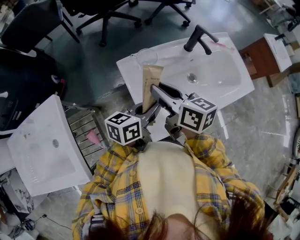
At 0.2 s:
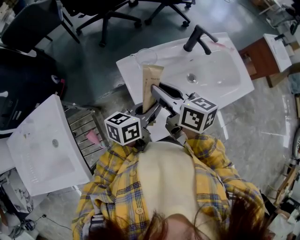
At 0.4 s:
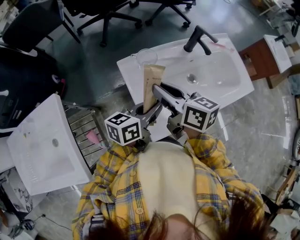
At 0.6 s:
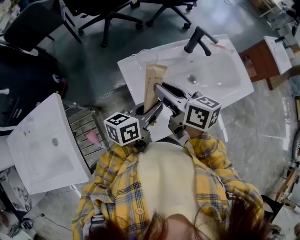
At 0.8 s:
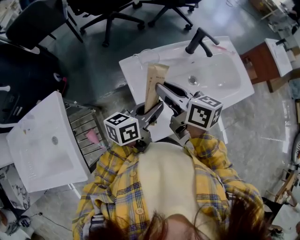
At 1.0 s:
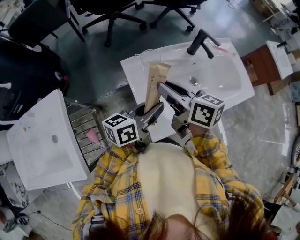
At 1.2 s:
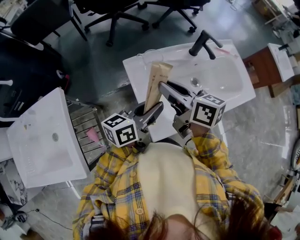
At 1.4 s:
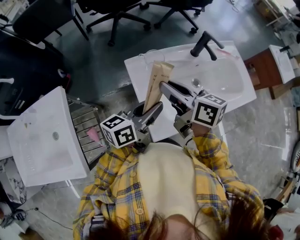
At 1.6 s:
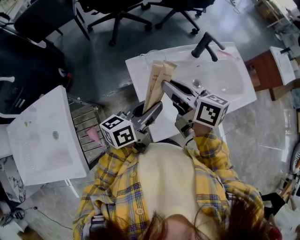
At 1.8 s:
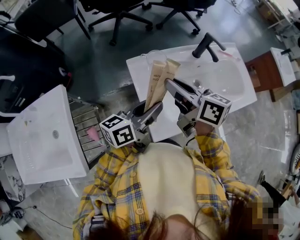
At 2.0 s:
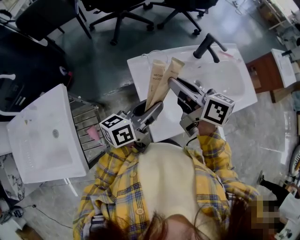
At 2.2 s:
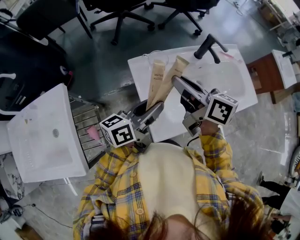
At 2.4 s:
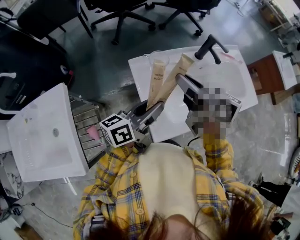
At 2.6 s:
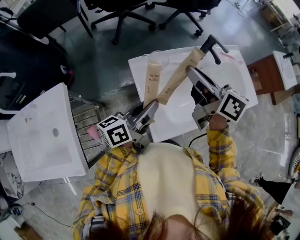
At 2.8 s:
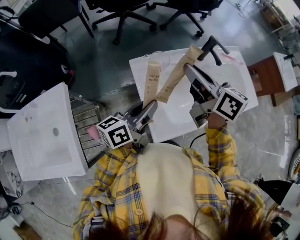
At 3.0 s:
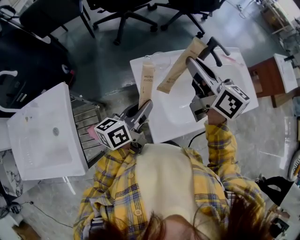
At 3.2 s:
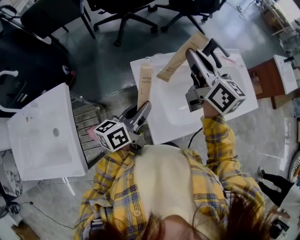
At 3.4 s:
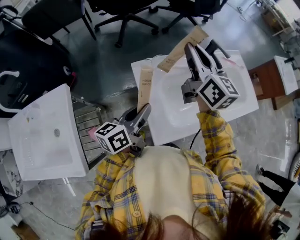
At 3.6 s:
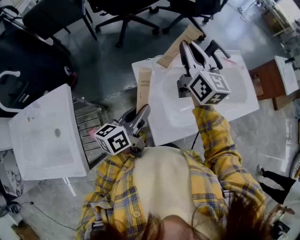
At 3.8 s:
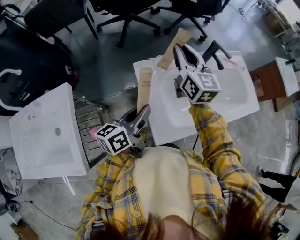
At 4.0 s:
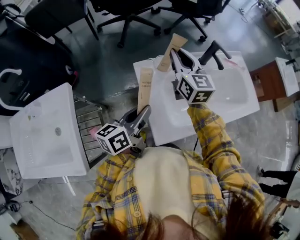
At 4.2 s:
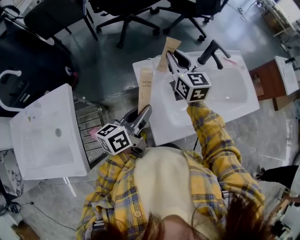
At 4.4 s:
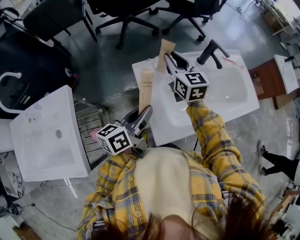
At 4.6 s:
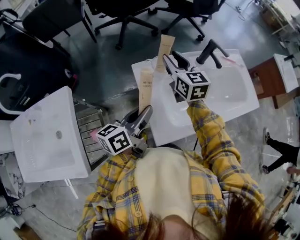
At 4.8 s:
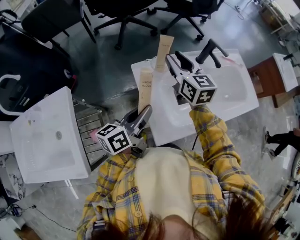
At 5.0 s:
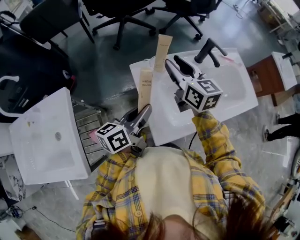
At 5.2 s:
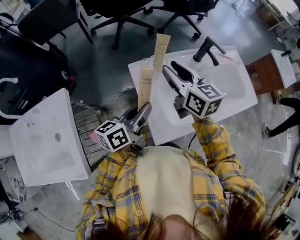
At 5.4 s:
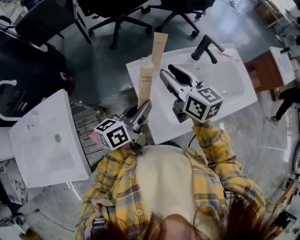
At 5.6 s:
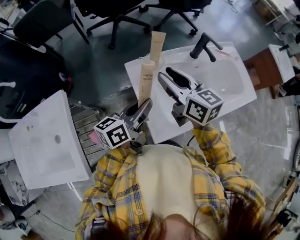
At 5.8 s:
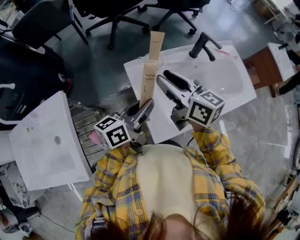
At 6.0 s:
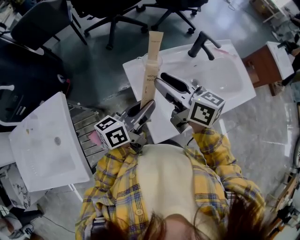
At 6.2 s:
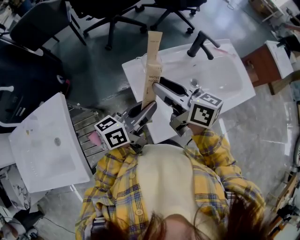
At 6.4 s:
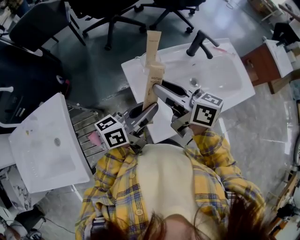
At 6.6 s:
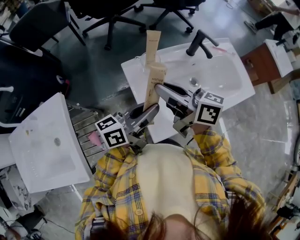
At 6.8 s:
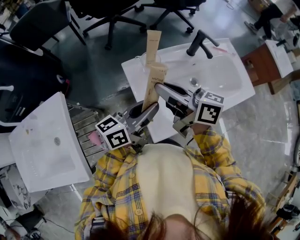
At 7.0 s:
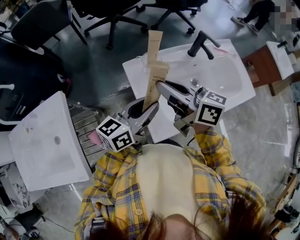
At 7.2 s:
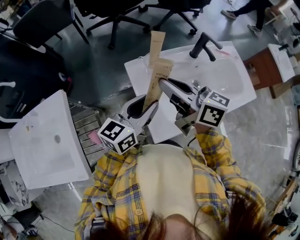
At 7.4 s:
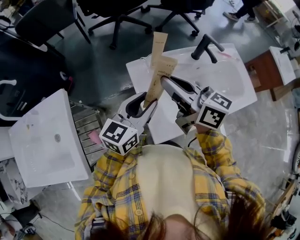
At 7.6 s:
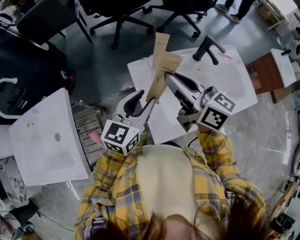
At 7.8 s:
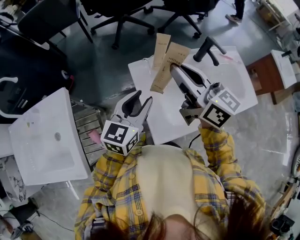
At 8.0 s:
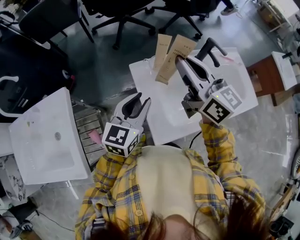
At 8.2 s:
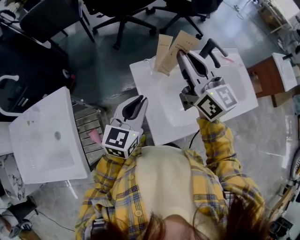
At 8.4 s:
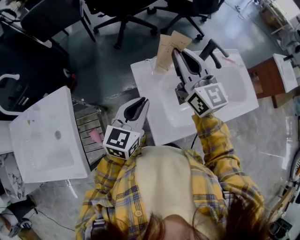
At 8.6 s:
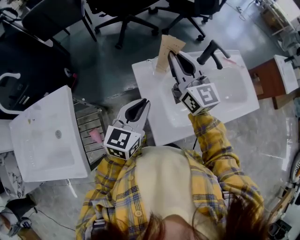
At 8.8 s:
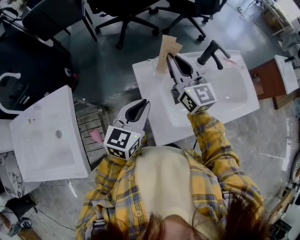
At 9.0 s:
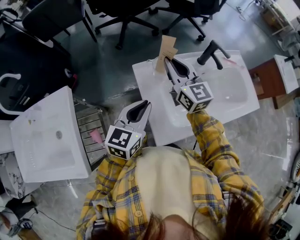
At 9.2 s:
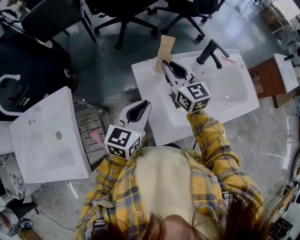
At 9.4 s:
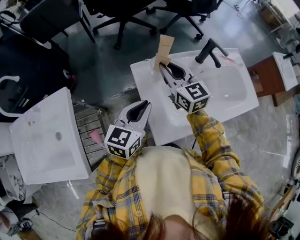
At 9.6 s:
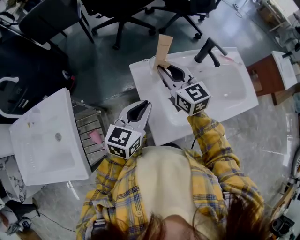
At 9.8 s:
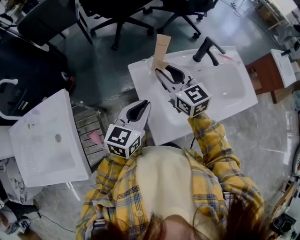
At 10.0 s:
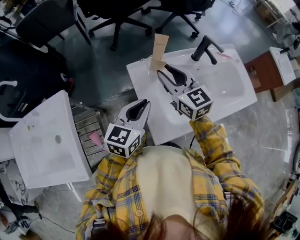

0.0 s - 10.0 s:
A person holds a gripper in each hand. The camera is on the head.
0.0 s - 1.4 s: The grippers move only a little.
1.4 s - 2.8 s: The right gripper goes about 5 cm upward.
2.8 s - 4.2 s: The right gripper is displaced forward, downward and to the left by about 10 cm, and rotates about 30 degrees.
4.2 s - 5.8 s: The right gripper goes roughly 10 cm backward, and turns by about 30 degrees.
5.8 s - 7.2 s: The right gripper closes. Meanwhile the left gripper changes its angle by about 20 degrees, and opens its fingers.
7.2 s - 8.6 s: The left gripper turns by some 20 degrees, and closes. Meanwhile the right gripper heads forward, covering roughly 10 cm, and changes its angle by about 40 degrees.
8.6 s - 10.0 s: The right gripper is displaced downward by about 5 cm.

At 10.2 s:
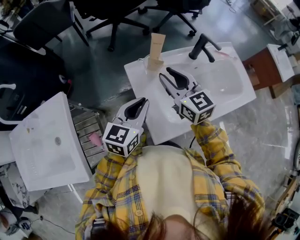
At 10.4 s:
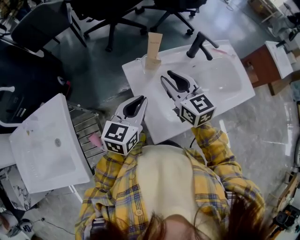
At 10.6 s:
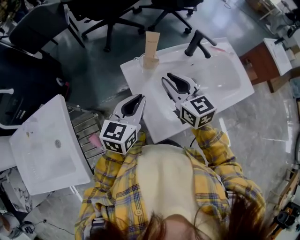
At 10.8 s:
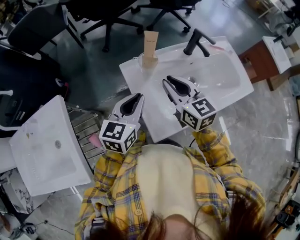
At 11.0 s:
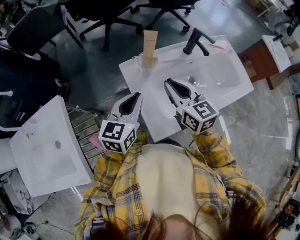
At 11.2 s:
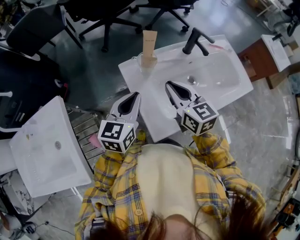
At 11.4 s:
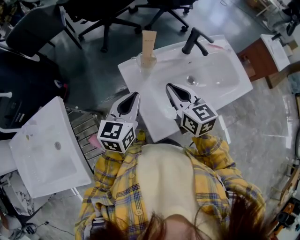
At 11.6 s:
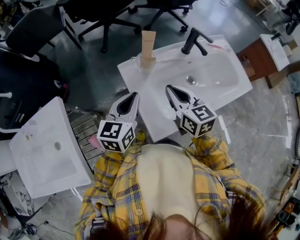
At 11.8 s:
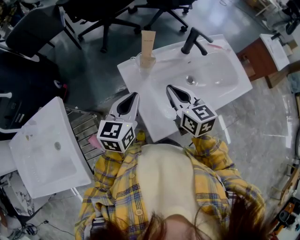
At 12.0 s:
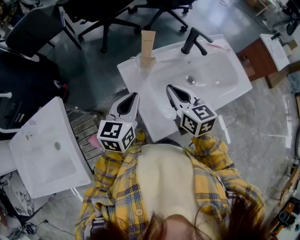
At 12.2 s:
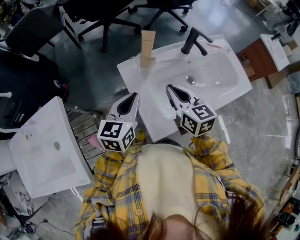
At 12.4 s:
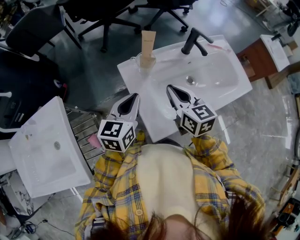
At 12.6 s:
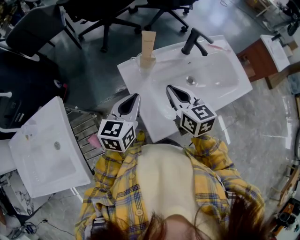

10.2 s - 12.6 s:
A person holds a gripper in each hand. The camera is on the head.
10.2 s - 11.4 s: The right gripper moves backward, some 5 cm.
11.4 s - 12.6 s: Both grippers stay about where they are.

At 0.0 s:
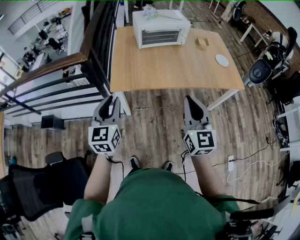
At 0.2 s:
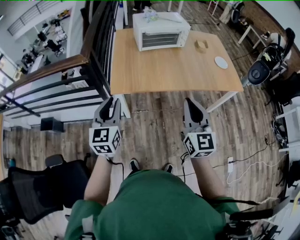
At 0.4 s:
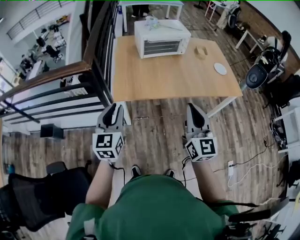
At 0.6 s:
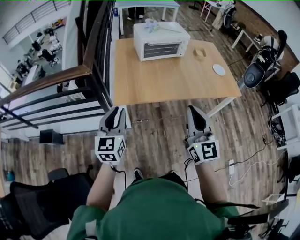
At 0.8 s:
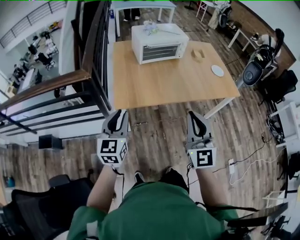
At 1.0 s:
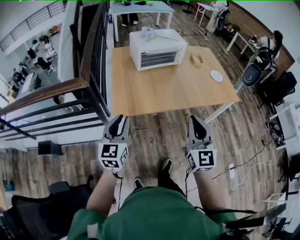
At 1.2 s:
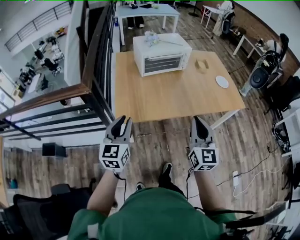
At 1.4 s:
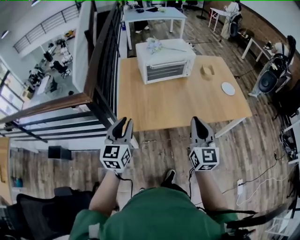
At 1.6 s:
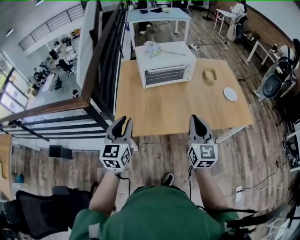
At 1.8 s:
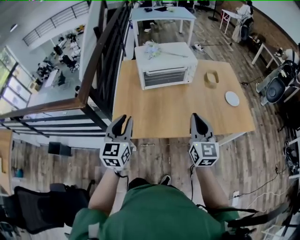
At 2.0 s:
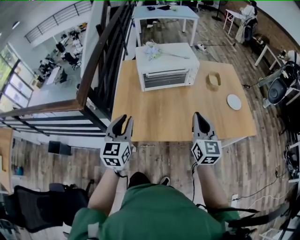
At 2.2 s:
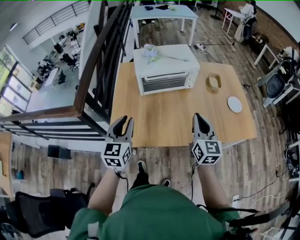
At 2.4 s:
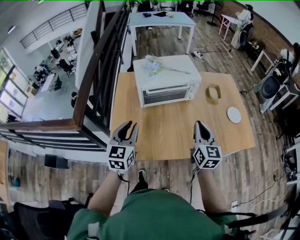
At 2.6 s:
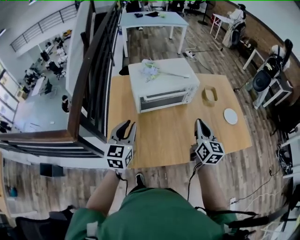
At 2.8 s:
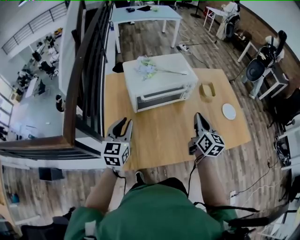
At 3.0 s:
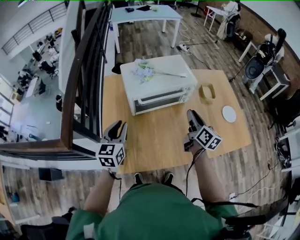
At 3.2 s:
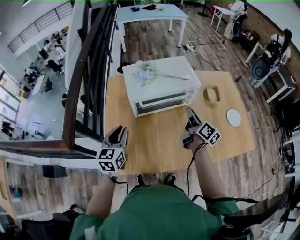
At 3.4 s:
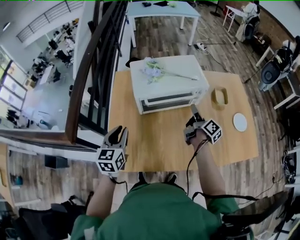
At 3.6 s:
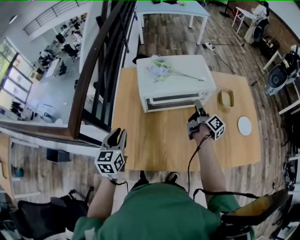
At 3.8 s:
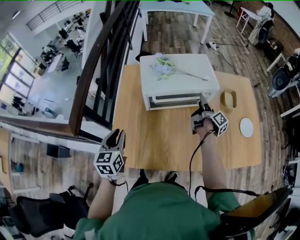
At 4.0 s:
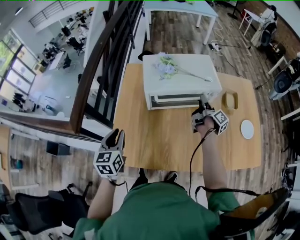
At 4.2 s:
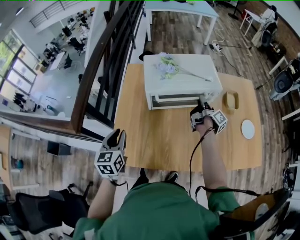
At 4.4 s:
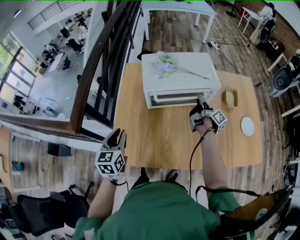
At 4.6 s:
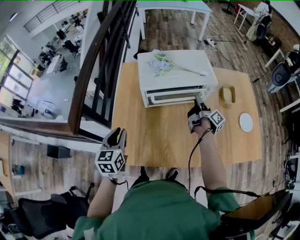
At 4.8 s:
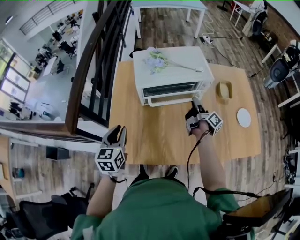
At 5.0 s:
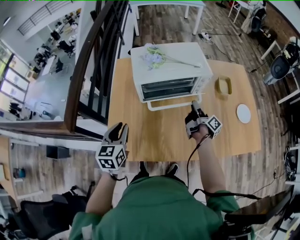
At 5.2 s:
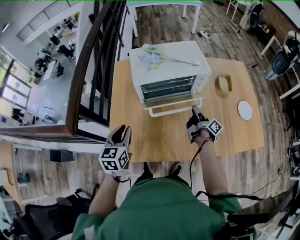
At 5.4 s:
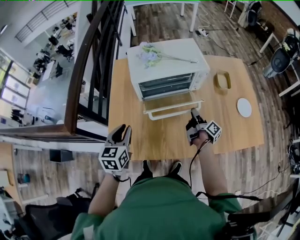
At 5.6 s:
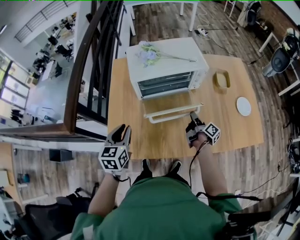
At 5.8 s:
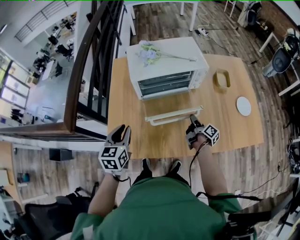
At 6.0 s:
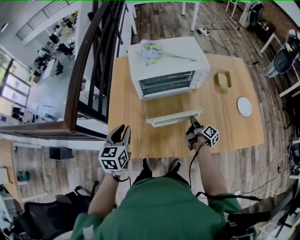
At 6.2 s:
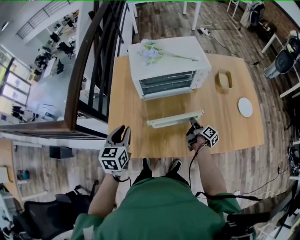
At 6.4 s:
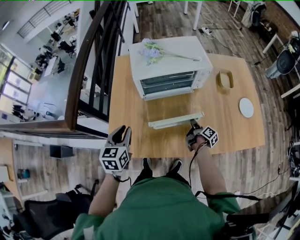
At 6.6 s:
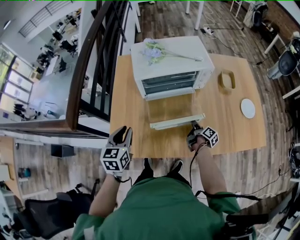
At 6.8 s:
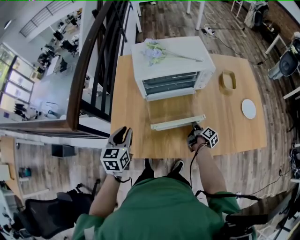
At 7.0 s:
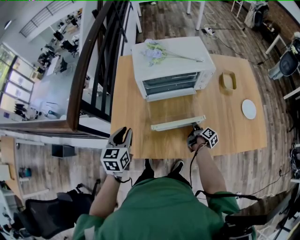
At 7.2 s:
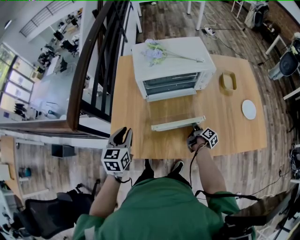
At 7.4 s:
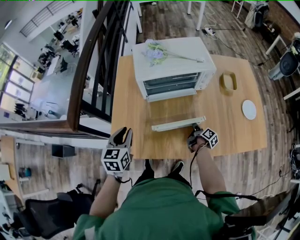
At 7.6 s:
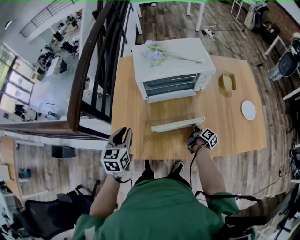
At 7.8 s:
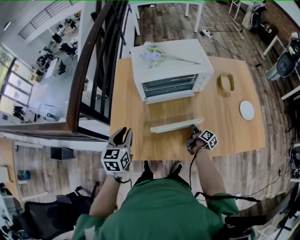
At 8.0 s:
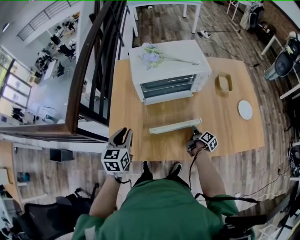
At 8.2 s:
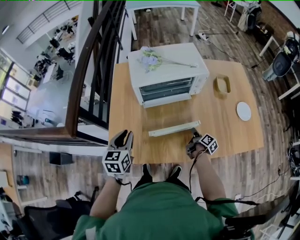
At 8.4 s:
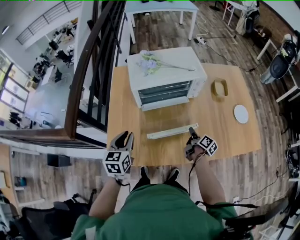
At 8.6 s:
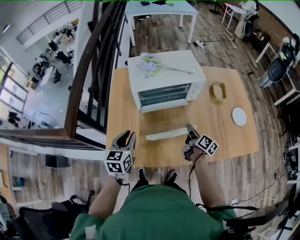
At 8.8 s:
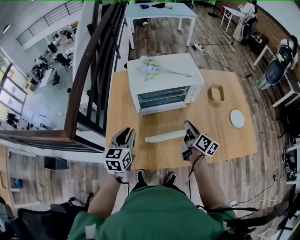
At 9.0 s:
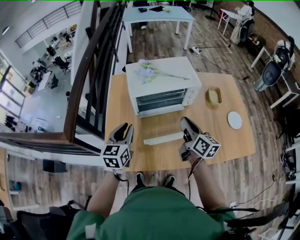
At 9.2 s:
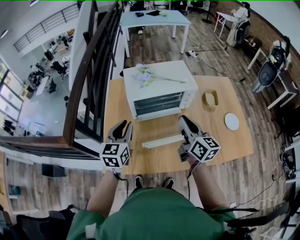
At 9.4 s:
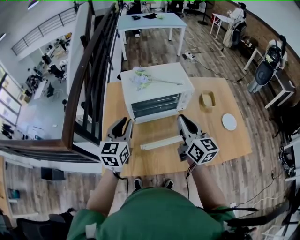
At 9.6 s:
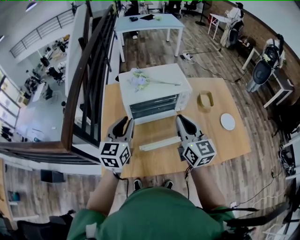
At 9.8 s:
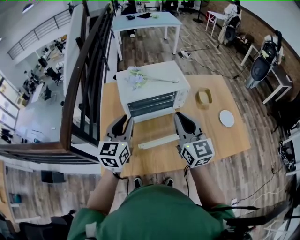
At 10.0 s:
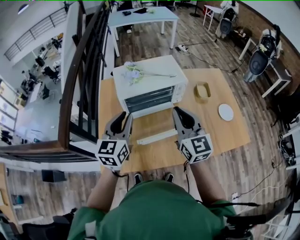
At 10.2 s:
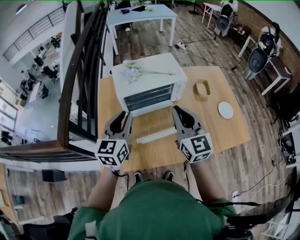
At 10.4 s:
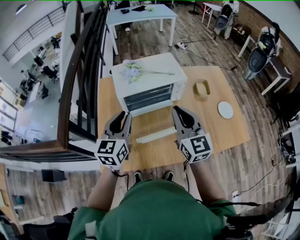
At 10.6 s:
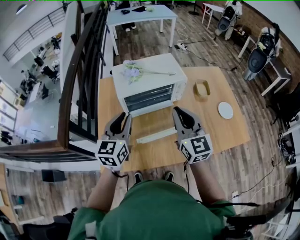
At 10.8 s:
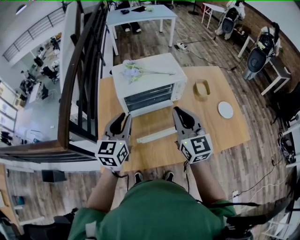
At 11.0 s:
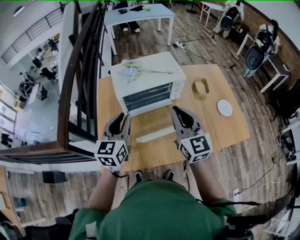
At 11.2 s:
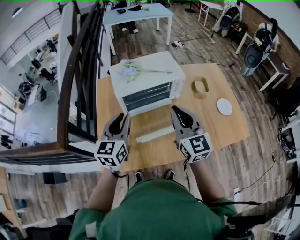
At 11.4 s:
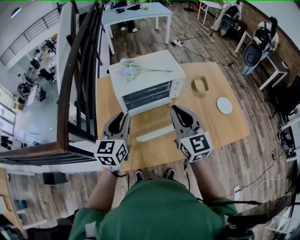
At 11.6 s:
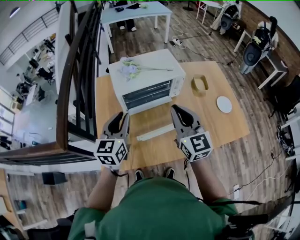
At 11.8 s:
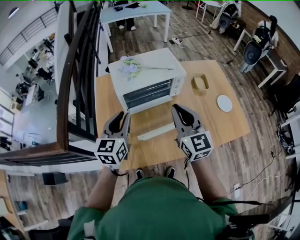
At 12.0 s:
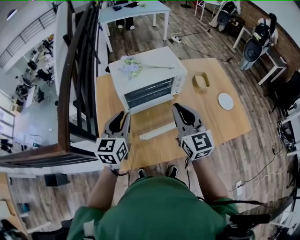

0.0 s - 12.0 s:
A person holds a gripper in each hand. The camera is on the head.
0.0 s - 1.6 s: Both grippers move forward, about 20 cm.
1.6 s - 3.0 s: The grippers both shift forward by approximately 30 cm. The right gripper rotates approximately 40 degrees.
3.0 s - 4.4 s: The right gripper moves forward and downward, roughly 20 cm, and twists approximately 50 degrees clockwise, seen from behind; the left gripper changes place by roughly 10 cm.
4.4 s - 6.0 s: The right gripper moves backward and downward, approximately 20 cm, while the left gripper travels to the right by about 5 cm.
6.0 s - 7.6 s: The right gripper travels downward by roughly 5 cm.
7.6 s - 9.0 s: The right gripper heads upward, covering roughly 30 cm, and twists about 40 degrees counterclockwise, seen from behind, while the left gripper heads upward and forward, covering some 10 cm.
9.0 s - 10.4 s: The left gripper is displaced upward and to the right by roughly 10 cm. The right gripper travels upward by approximately 10 cm, and rolls counterclockwise, seen from behind, by some 40 degrees.
10.4 s - 12.0 s: There are only small adjustments of the grippers.
